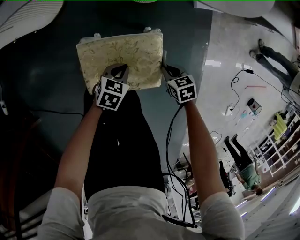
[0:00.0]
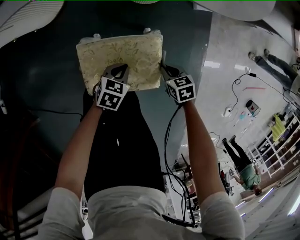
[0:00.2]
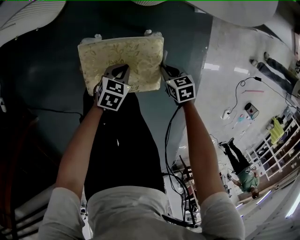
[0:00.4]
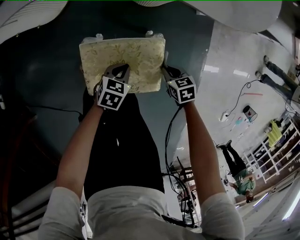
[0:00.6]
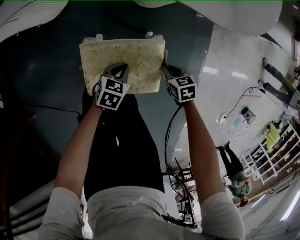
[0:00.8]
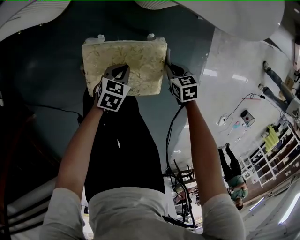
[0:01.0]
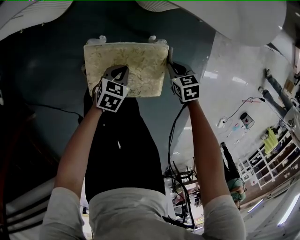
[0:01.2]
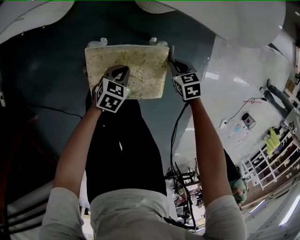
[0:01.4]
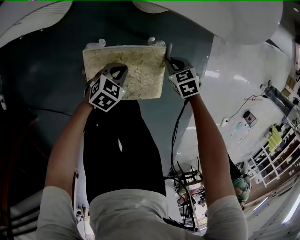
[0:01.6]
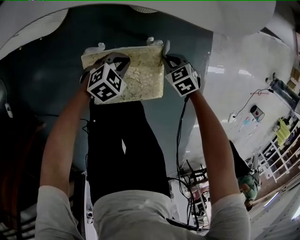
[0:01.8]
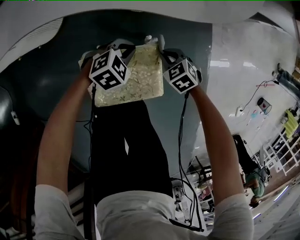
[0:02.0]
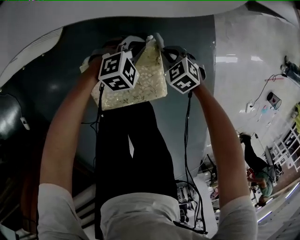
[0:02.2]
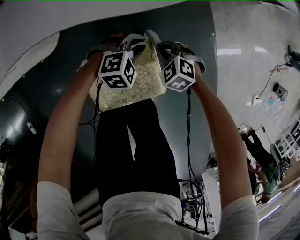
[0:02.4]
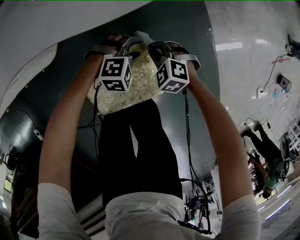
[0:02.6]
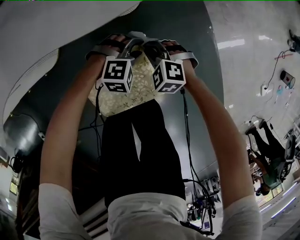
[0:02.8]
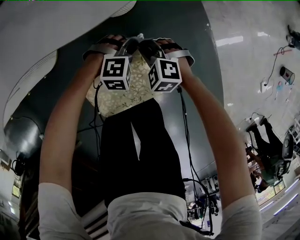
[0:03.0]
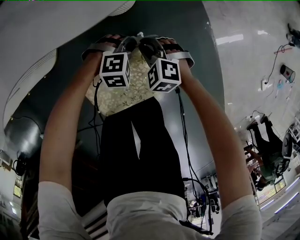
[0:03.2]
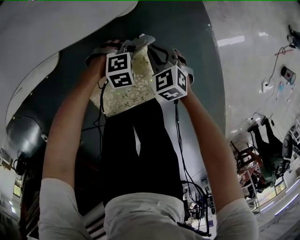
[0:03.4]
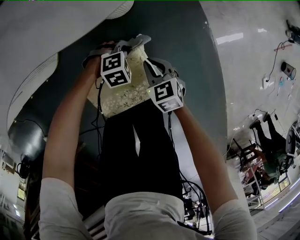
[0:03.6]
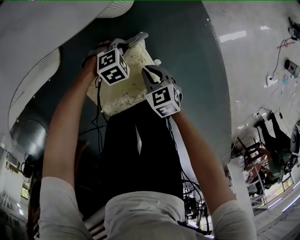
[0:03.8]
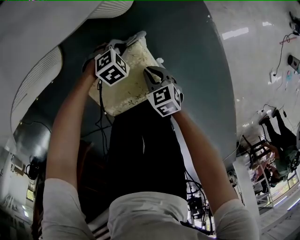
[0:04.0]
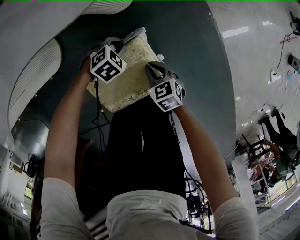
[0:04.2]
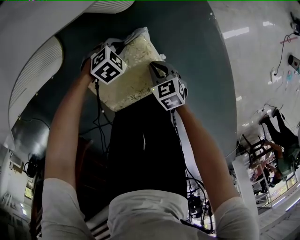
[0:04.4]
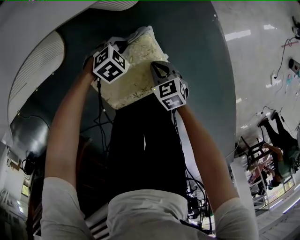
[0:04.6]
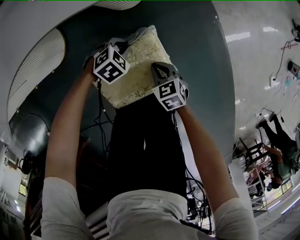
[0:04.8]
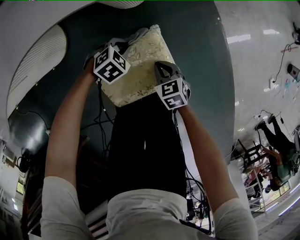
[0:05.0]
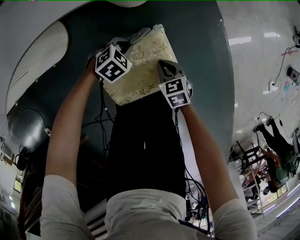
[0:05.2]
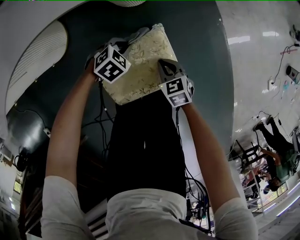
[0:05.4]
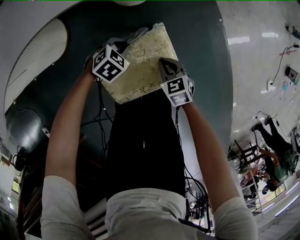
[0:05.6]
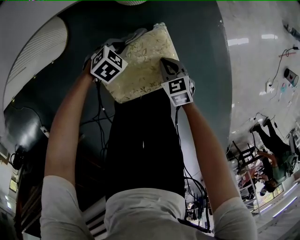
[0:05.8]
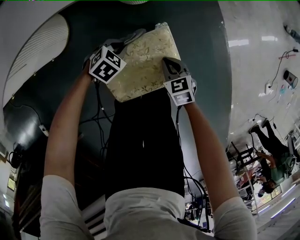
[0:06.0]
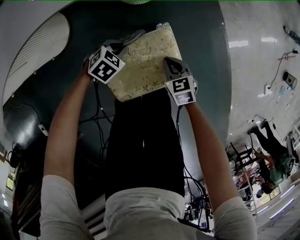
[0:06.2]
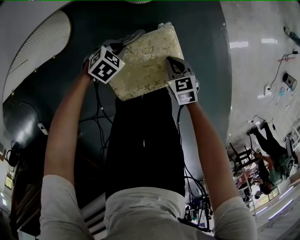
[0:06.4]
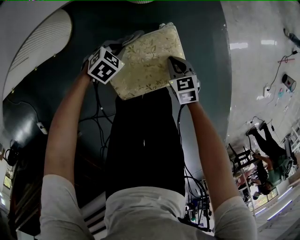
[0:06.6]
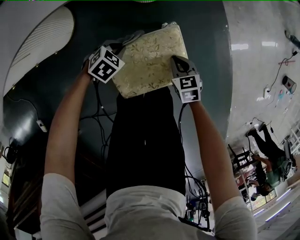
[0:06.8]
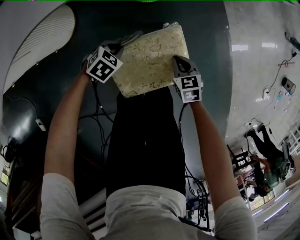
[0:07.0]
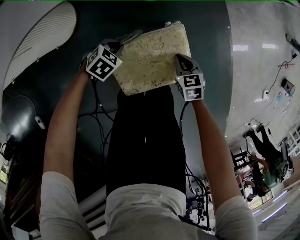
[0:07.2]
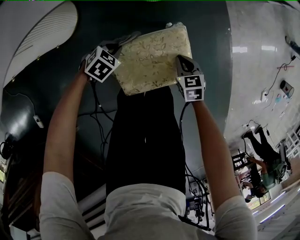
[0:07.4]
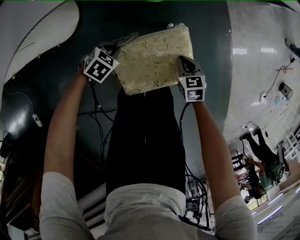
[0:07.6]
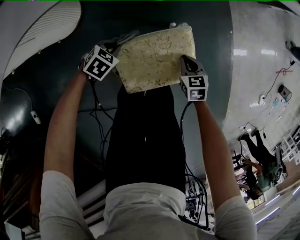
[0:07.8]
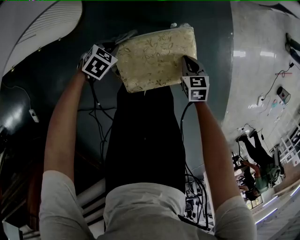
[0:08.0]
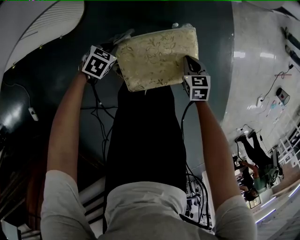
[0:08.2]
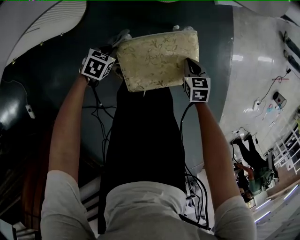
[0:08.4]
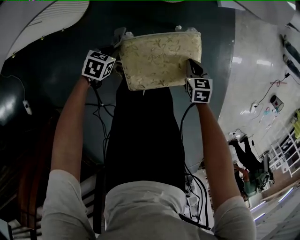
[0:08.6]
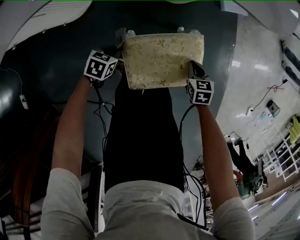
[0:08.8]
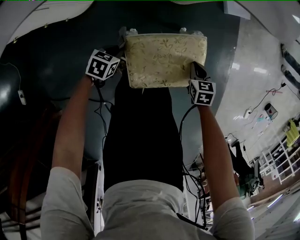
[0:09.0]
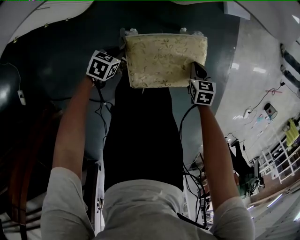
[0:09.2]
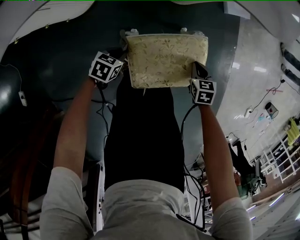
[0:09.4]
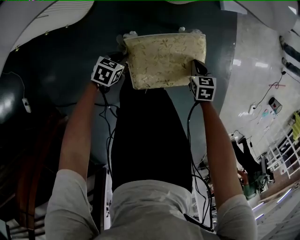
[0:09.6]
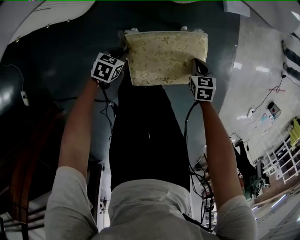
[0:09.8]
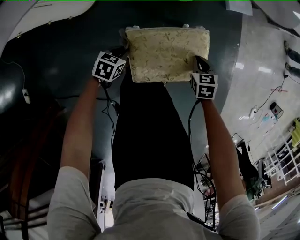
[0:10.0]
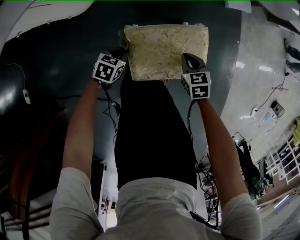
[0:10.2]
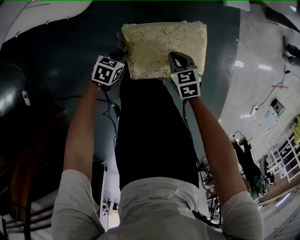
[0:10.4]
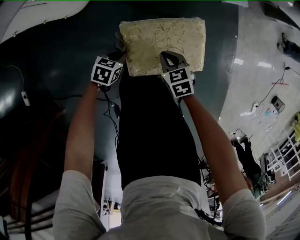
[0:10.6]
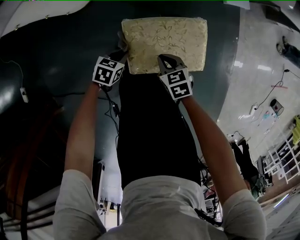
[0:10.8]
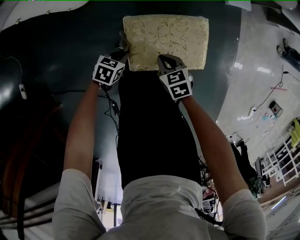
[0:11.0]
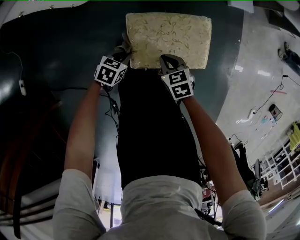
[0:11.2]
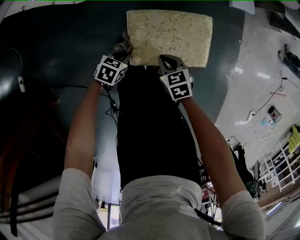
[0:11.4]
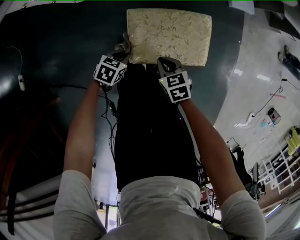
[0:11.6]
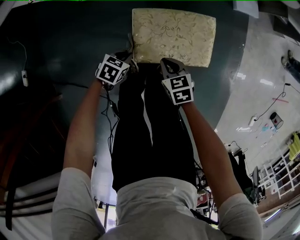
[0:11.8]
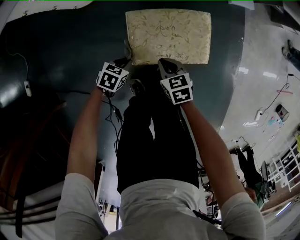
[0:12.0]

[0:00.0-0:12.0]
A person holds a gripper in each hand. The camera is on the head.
0.0 to 1.6 s: The right gripper changes place by about 10 cm.
1.6 to 3.0 s: The right gripper ends up approximately 5 cm from where it was, and turns by some 30 degrees; the left gripper shifts by roughly 15 cm, twists some 70 degrees clockwise, seen from behind, and opens, then closes again.
3.0 to 4.4 s: The right gripper changes place by roughly 10 cm, and rolls clockwise, seen from behind, by roughly 50 degrees; the left gripper changes place by approximately 5 cm, and changes its angle by some 30 degrees.
4.4 to 6.0 s: The left gripper ends up approximately 10 cm from where it was.
6.0 to 7.6 s: The left gripper is displaced to the left and backward by about 10 cm.
7.6 to 9.0 s: The left gripper is displaced backward by approximately 10 cm, and changes its angle by some 30 degrees.
9.0 to 10.4 s: The right gripper heads to the left and backward, covering about 10 cm. The left gripper moves some 5 cm.
10.4 to 12.0 s: The two grippers go some 10 cm backward.

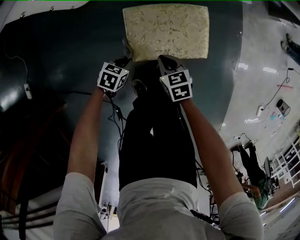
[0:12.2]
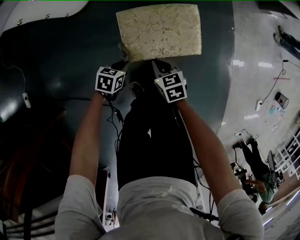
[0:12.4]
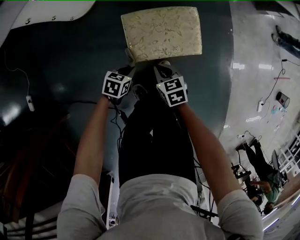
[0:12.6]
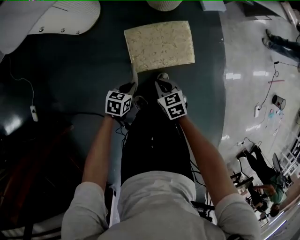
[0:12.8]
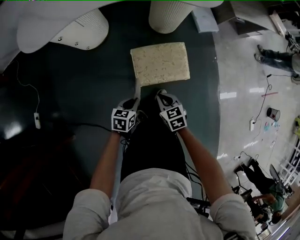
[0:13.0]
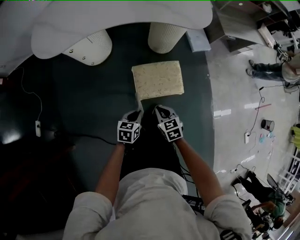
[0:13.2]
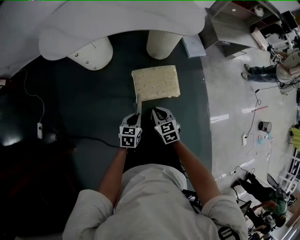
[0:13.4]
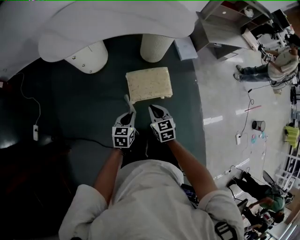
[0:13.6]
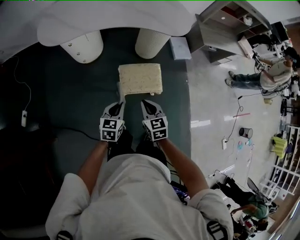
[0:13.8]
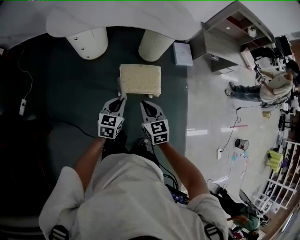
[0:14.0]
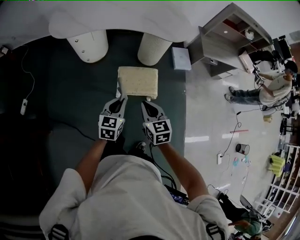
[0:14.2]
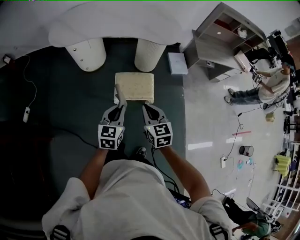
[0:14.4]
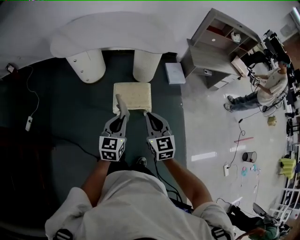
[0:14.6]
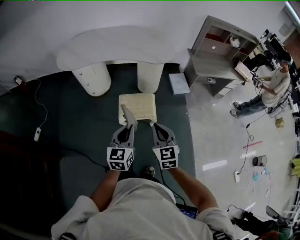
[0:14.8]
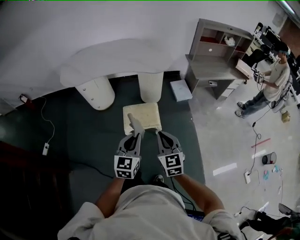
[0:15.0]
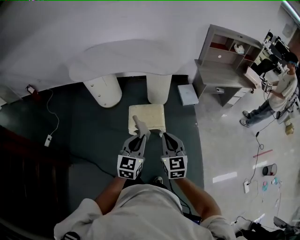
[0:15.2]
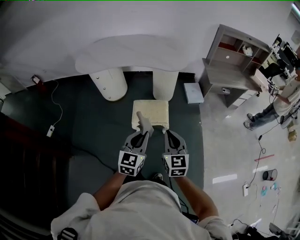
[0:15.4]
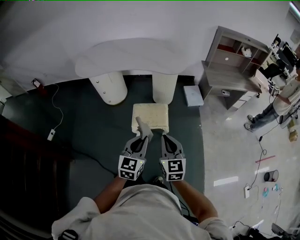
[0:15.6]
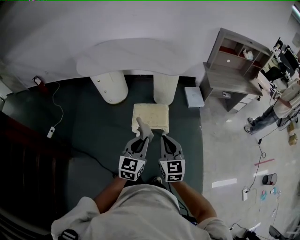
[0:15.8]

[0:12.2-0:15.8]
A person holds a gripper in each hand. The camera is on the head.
12.2 to 14.0 s: The two grippers go approximately 50 cm upward. The right gripper swivels about 30 degrees, while the left gripper swivels approximately 40 degrees.
14.0 to 15.8 s: The grippers both shift to the right, backward and upward by roughly 25 cm. The right gripper swivels about 20 degrees.

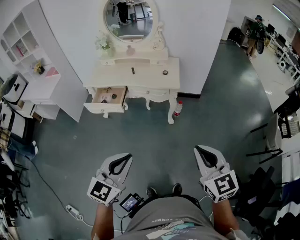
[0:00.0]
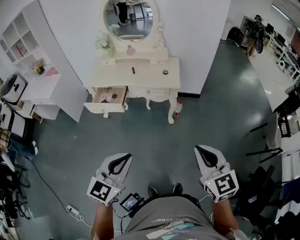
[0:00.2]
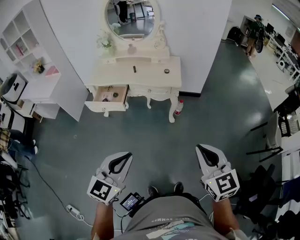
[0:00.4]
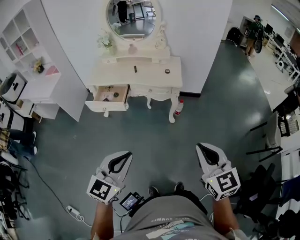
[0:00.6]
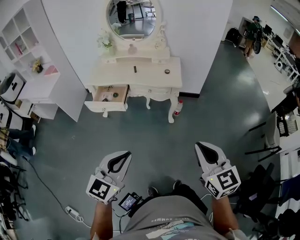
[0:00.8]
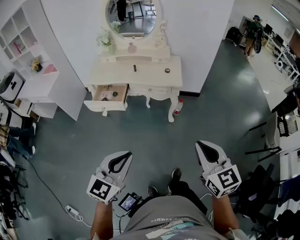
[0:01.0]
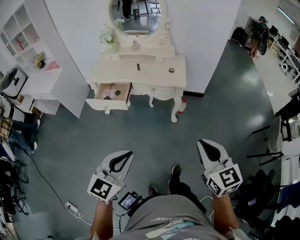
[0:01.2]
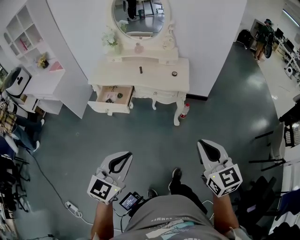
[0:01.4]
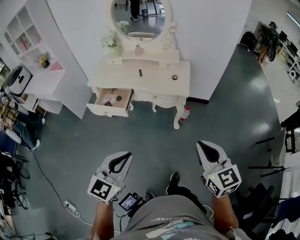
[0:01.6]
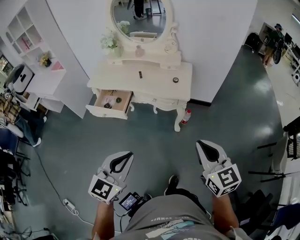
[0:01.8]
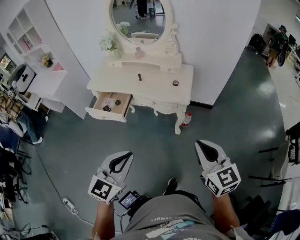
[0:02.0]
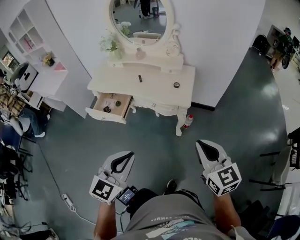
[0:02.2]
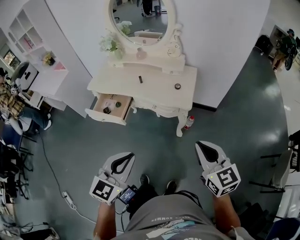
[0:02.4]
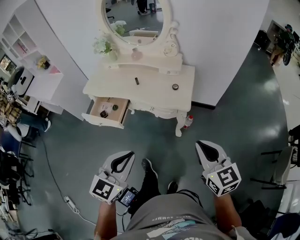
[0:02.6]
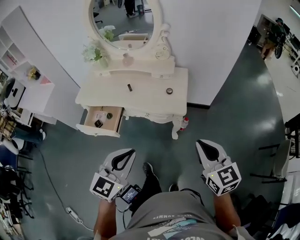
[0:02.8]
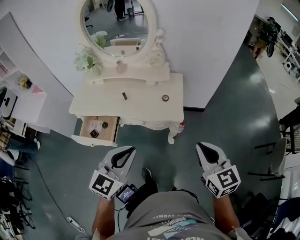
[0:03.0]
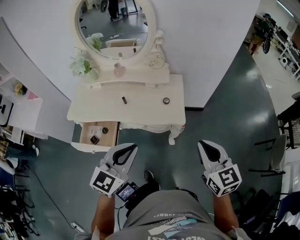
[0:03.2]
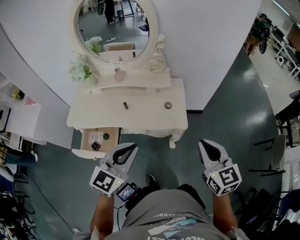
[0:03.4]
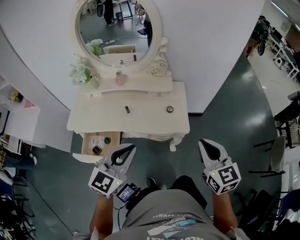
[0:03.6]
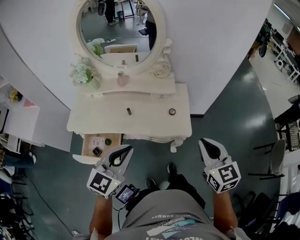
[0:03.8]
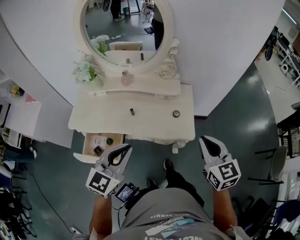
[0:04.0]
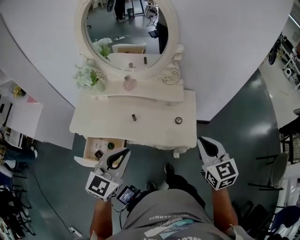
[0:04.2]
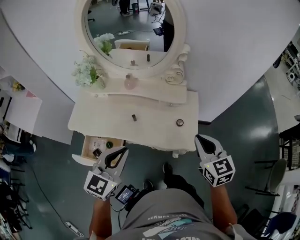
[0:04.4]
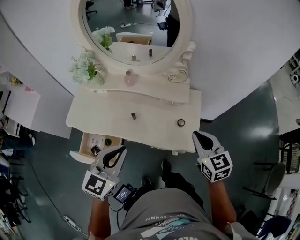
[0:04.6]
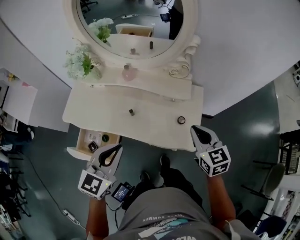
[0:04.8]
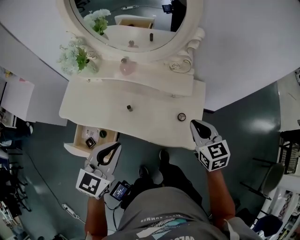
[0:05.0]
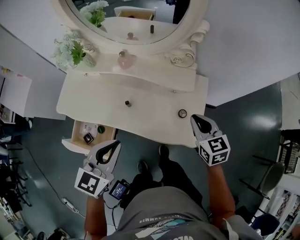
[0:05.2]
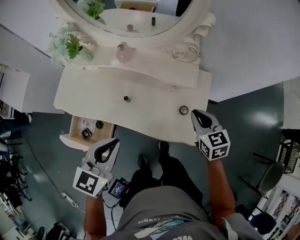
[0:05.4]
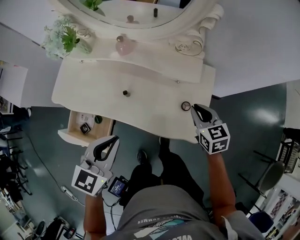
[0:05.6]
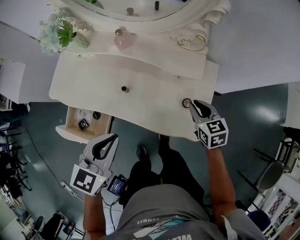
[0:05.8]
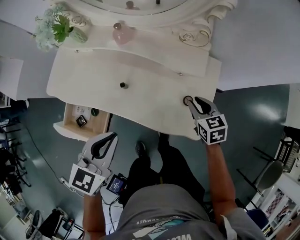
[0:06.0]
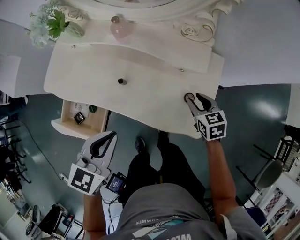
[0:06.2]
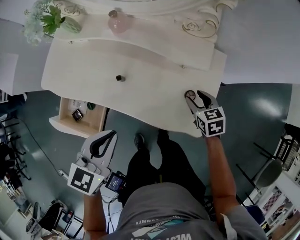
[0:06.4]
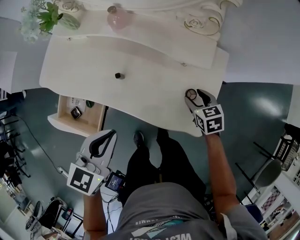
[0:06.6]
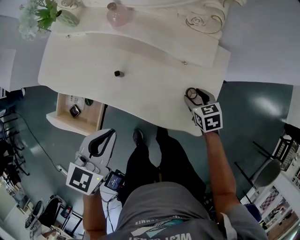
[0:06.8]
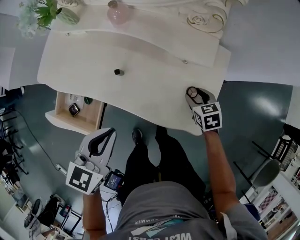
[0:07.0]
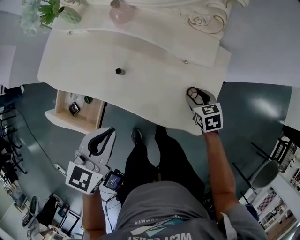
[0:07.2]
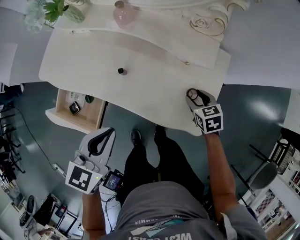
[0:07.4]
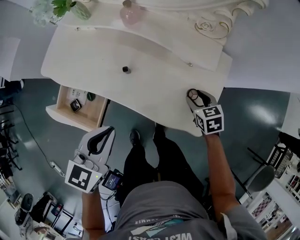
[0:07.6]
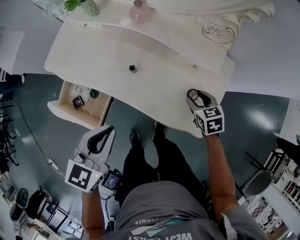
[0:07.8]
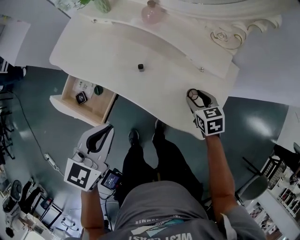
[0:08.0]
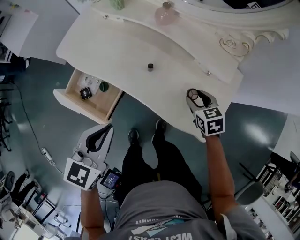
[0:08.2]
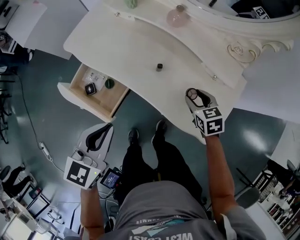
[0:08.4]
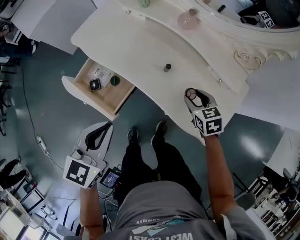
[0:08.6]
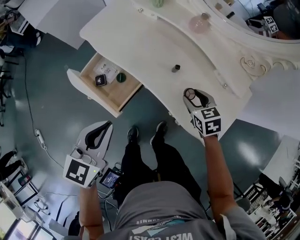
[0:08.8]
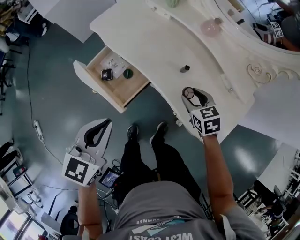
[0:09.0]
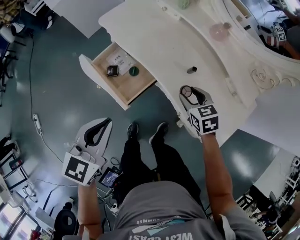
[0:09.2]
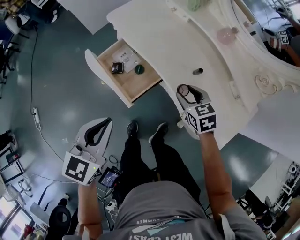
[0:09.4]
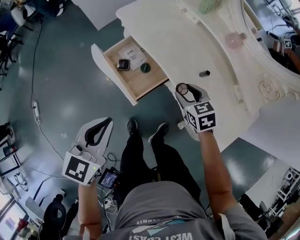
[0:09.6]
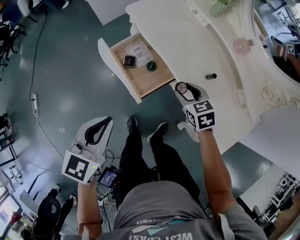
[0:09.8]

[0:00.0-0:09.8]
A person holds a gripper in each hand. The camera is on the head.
0.0 to 1.4 s: The right gripper travels forward by roughly 10 cm. Meanwhile the left gripper goes roughly 5 cm forward.
1.4 to 2.8 s: Both grippers move forward, about 25 cm.
2.8 to 4.2 s: Both grippers move forward and to the left, roughly 30 cm.
4.2 to 5.6 s: The right gripper travels downward and forward by about 30 cm, and turns by about 20 degrees; the left gripper moves downward and forward, approximately 20 cm, and changes its angle by some 20 degrees.
5.6 to 7.0 s: The right gripper shifts about 20 cm downward, and opens up. Meanwhile the left gripper moves downward, about 10 cm.
7.0 to 8.4 s: The left gripper is displaced to the left and backward by approximately 15 cm, while the right gripper is displaced to the left and upward by approximately 15 cm.
8.4 to 9.8 s: The left gripper ends up approximately 20 cm from where it was, and swivels about 20 degrees, while the right gripper changes place by approximately 25 cm, and turns by roughly 30 degrees.
